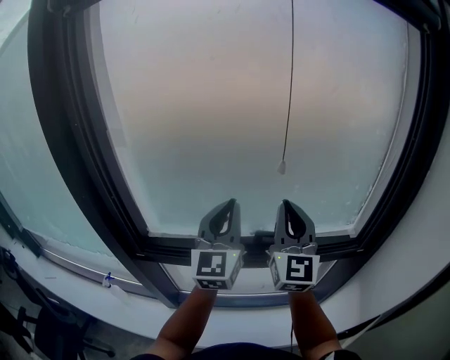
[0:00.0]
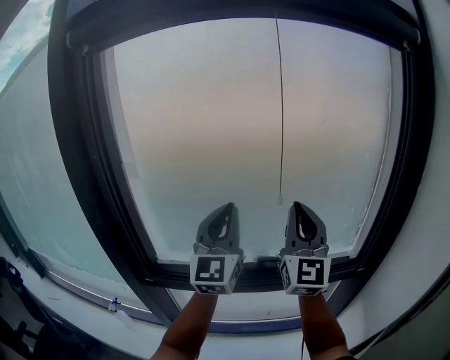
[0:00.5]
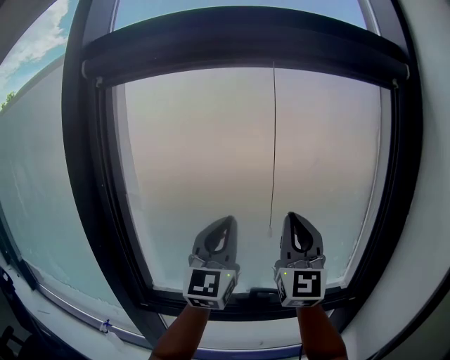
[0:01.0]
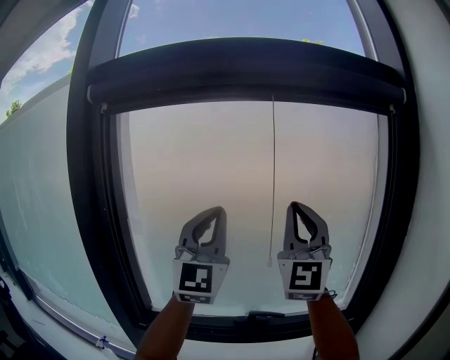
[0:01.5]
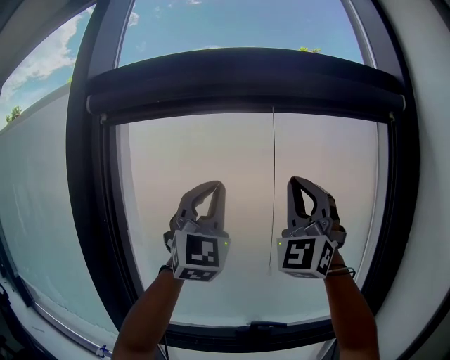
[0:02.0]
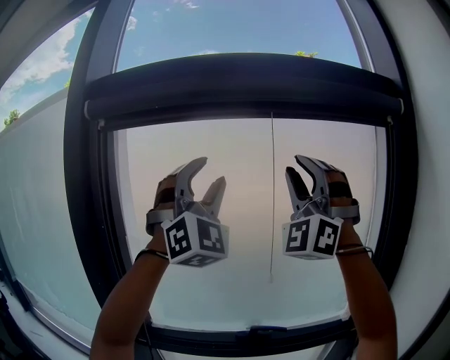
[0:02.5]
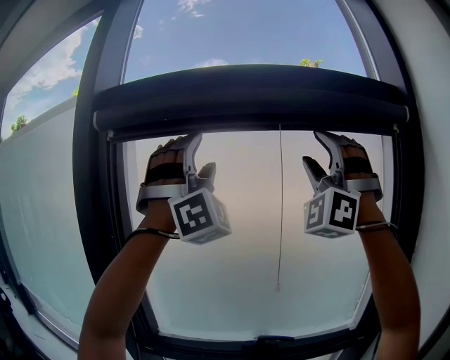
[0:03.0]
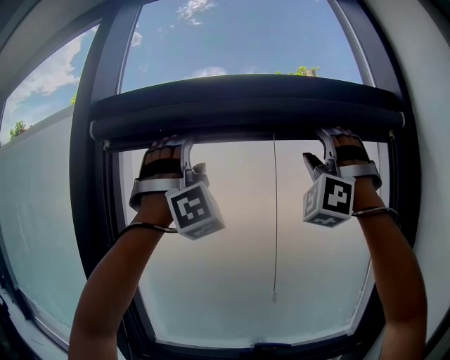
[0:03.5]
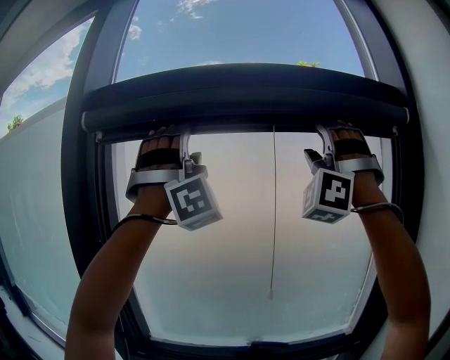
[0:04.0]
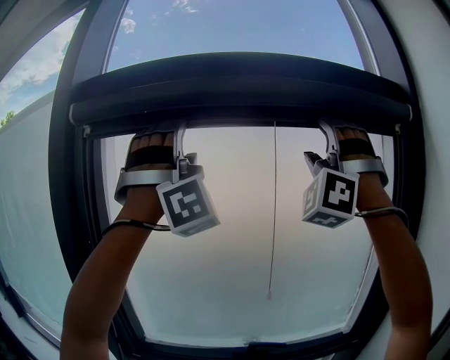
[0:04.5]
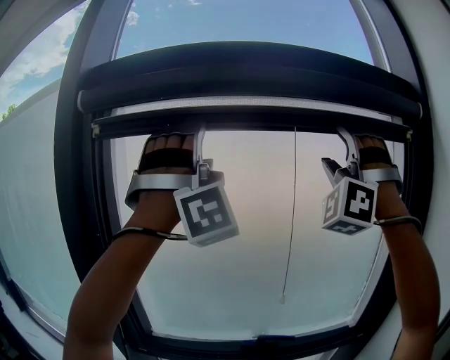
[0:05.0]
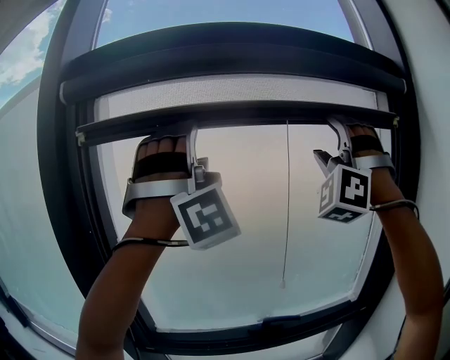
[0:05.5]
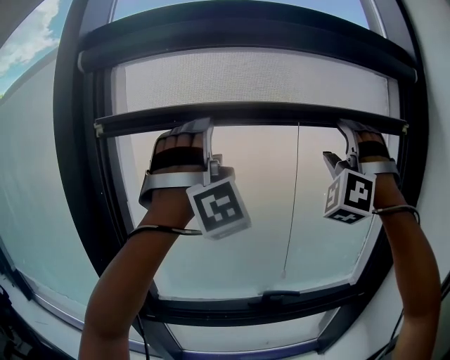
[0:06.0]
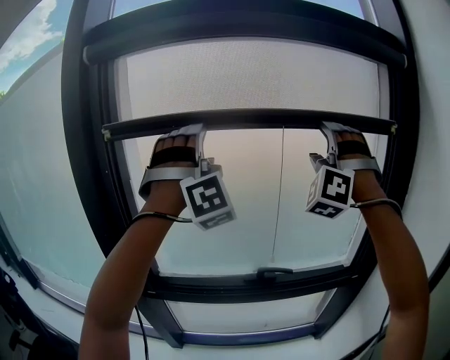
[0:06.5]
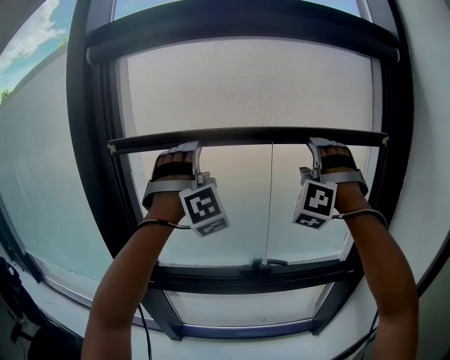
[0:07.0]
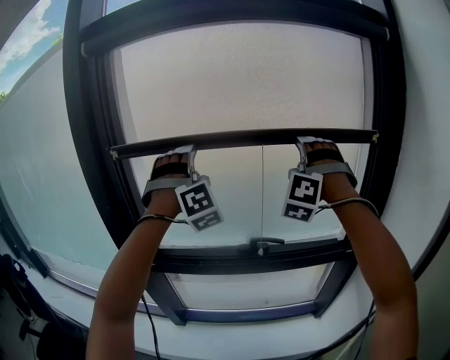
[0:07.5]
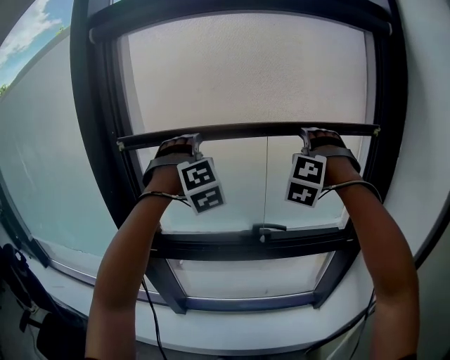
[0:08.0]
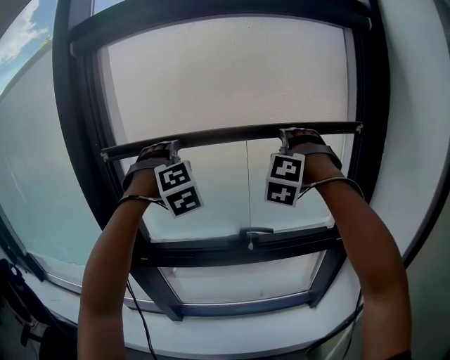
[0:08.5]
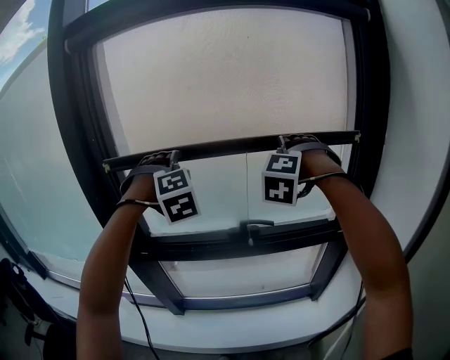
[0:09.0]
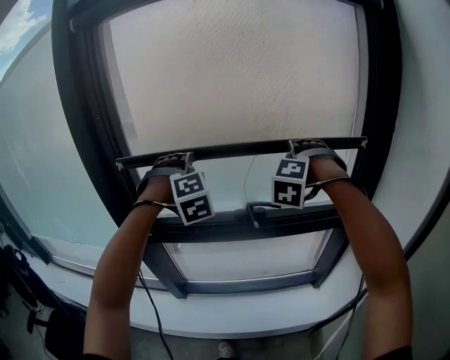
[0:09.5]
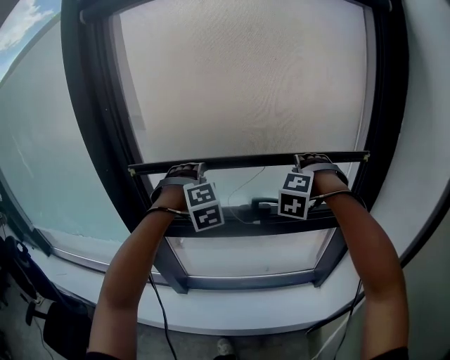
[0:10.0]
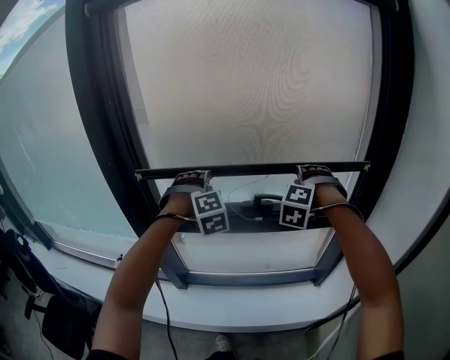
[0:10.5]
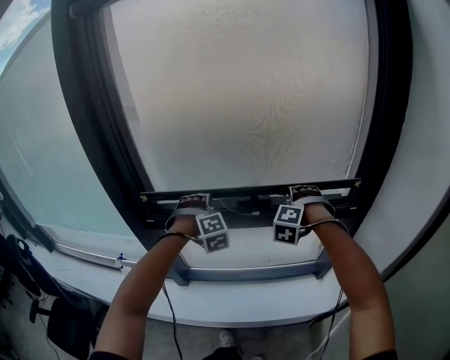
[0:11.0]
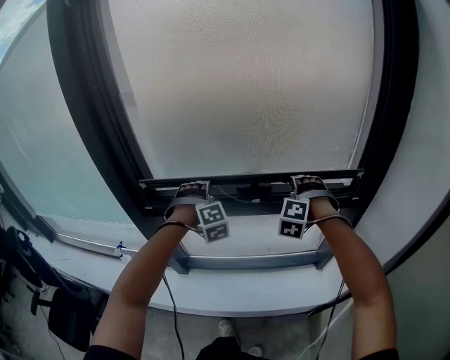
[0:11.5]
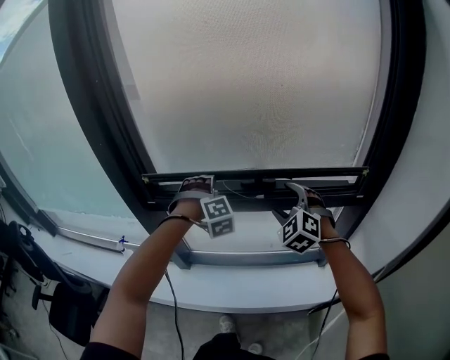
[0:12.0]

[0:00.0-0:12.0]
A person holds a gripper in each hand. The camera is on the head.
0:00.0 to 0:02.0: Both grippers move upward, about 30 cm. The left gripper rotates some 40 degrees. The right gripper twists roughly 50 degrees counterclockwise, seen from behind.
0:02.0 to 0:04.0: The grippers both shift upward by some 15 cm. The left gripper rolls clockwise, seen from behind, by about 60 degrees, and opens up. Meanwhile the right gripper twists some 50 degrees counterclockwise, seen from behind, and opens up.
0:04.0 to 0:06.0: Both grippers travel together downward, approximately 15 cm.
0:06.0 to 0:08.0: The two grippers go approximately 20 cm downward. The left gripper tilts its fingers approximately 30 degrees downward; the right gripper points its fingers approximately 30 degrees further downward.
0:08.0 to 0:10.0: Both grippers travel together downward, roughly 15 cm. The left gripper changes its angle by about 20 degrees. The right gripper swivels approximately 20 degrees.
0:10.0 to 0:12.0: The two grippers go approximately 15 cm downward. The right gripper changes its angle by approximately 40 degrees.

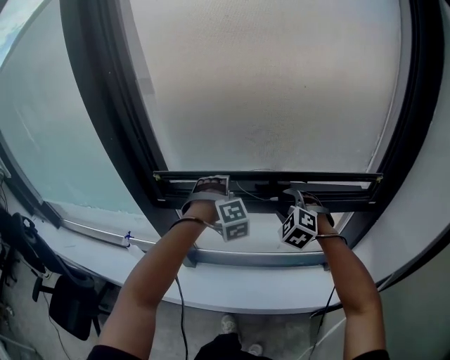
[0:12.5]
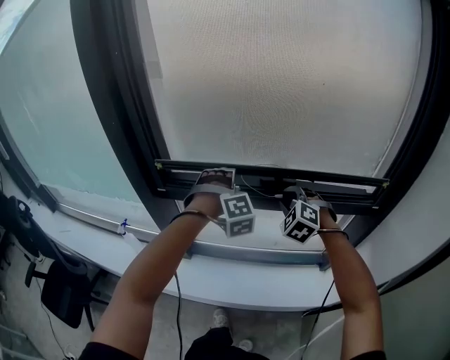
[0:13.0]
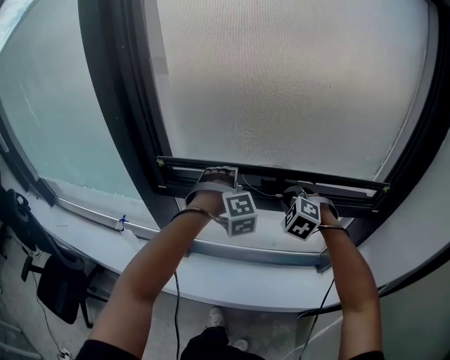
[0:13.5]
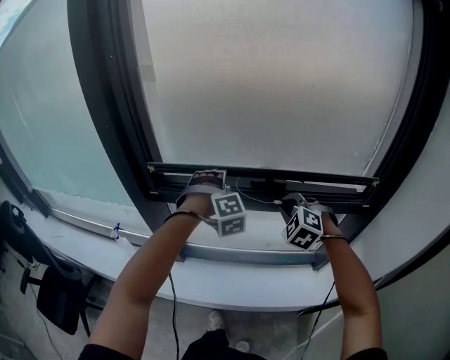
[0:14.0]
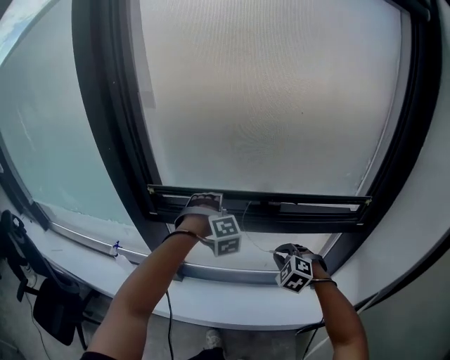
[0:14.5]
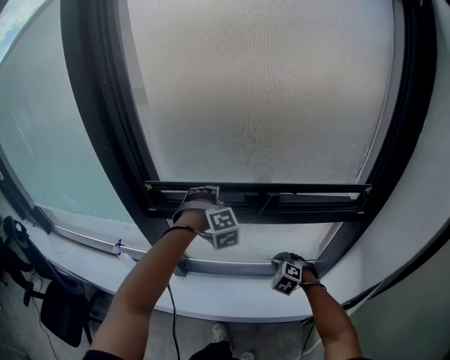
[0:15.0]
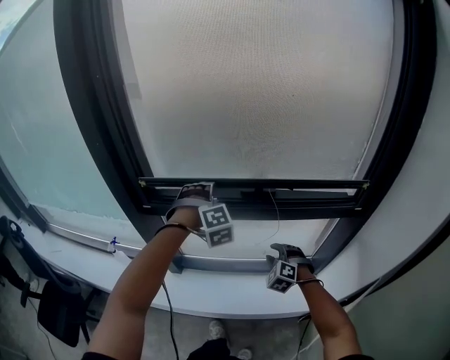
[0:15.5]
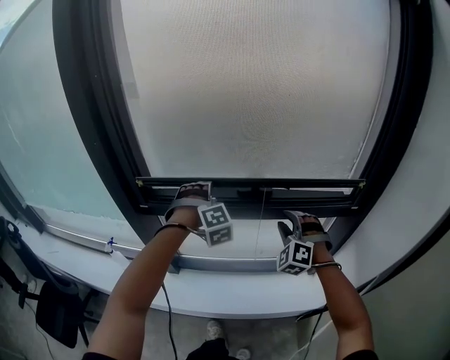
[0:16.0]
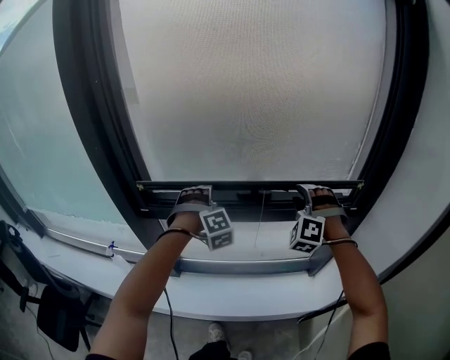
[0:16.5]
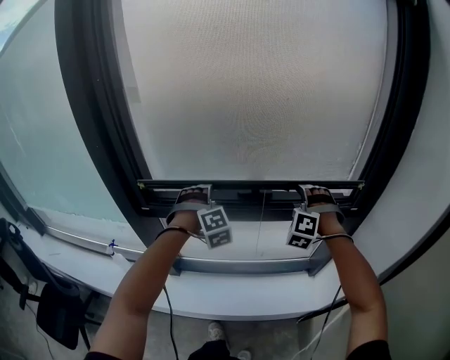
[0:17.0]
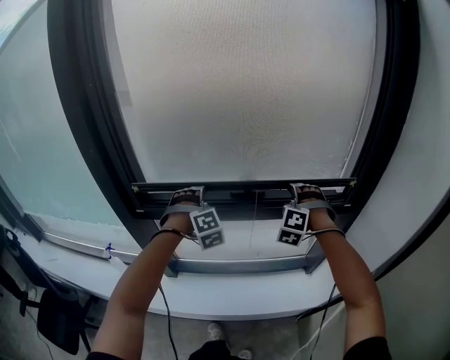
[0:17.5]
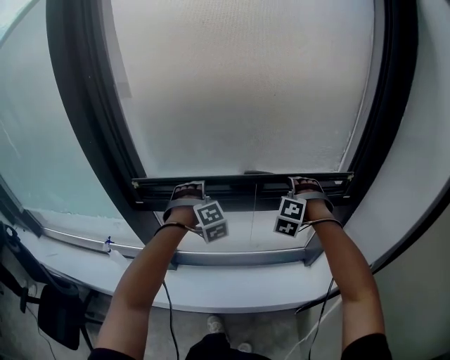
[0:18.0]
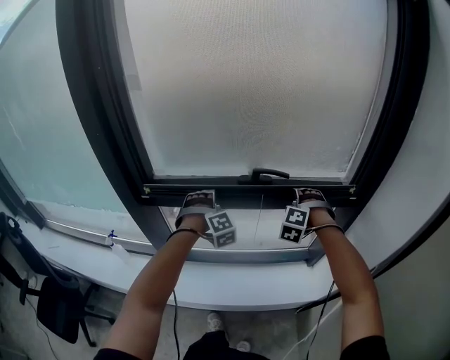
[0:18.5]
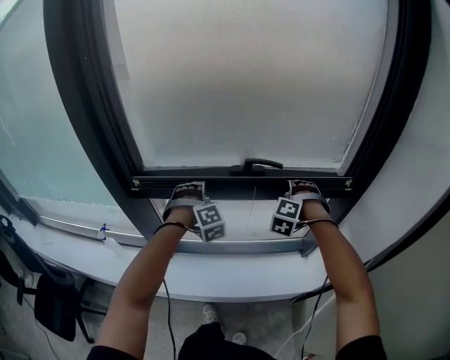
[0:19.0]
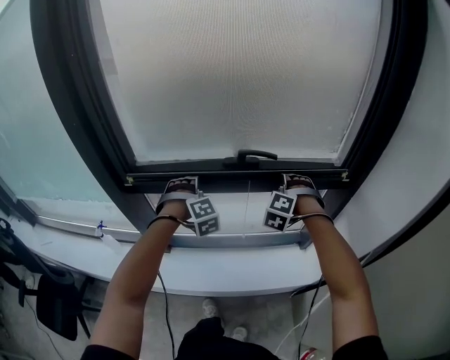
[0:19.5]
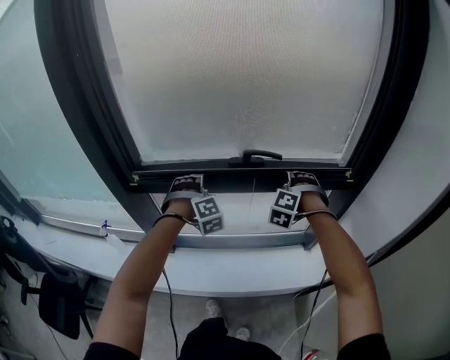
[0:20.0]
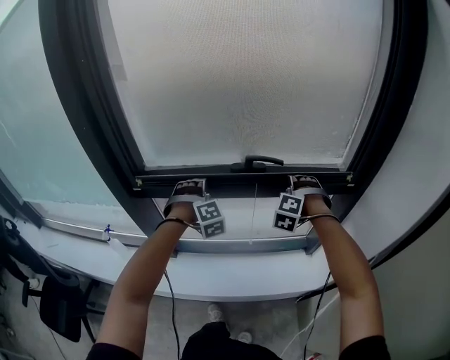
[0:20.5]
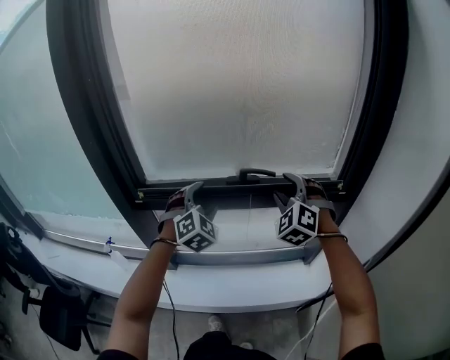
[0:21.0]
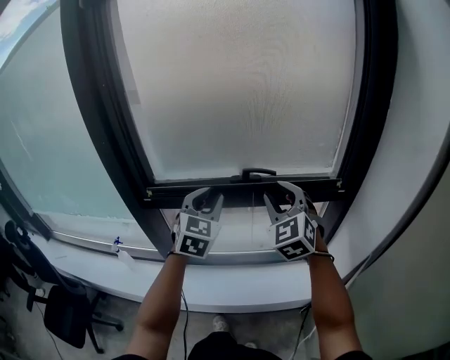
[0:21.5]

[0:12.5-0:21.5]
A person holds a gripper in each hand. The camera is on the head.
0:12.5 to 0:14.5: The right gripper moves downward and backward, approximately 10 cm, and closes.
0:14.5 to 0:17.0: The right gripper travels upward, to the right and forward by some 15 cm, swivels roughly 40 degrees, and opens its fingers.
0:17.0 to 0:19.5: Both grippers travel together downward, roughly 10 cm.
0:19.5 to 0:21.5: The grippers both shift upward and backward by about 20 cm. The left gripper tips its fingers upward by roughly 30 degrees, and closes up. The right gripper tips its fingers upward by about 30 degrees.

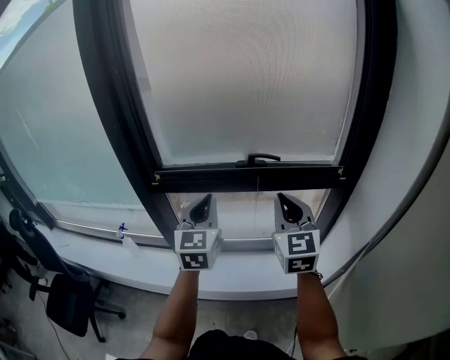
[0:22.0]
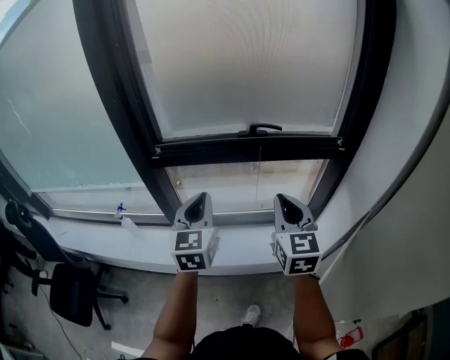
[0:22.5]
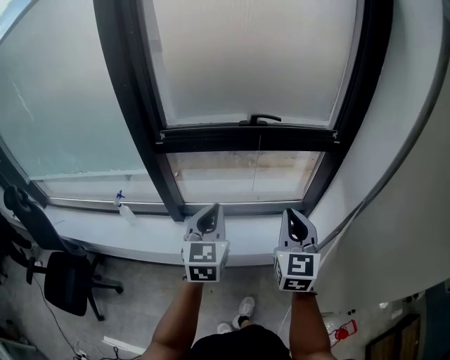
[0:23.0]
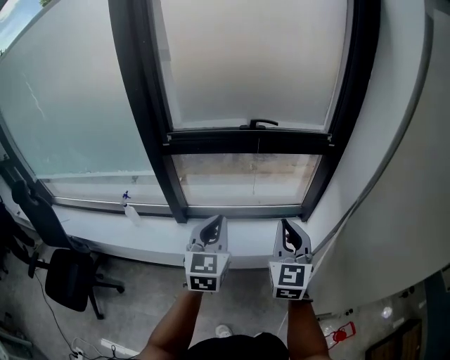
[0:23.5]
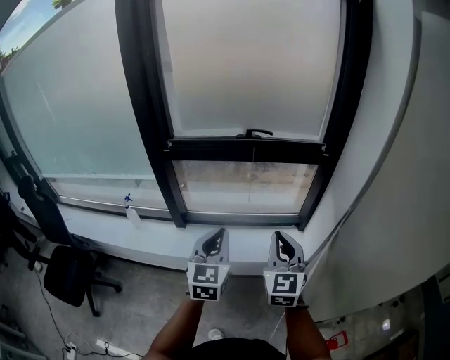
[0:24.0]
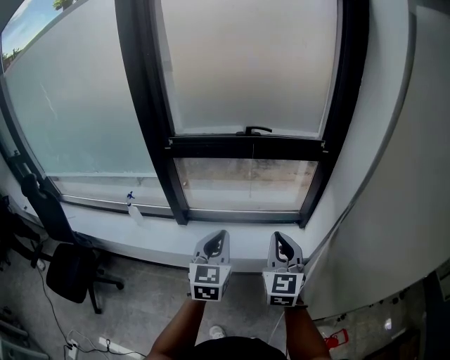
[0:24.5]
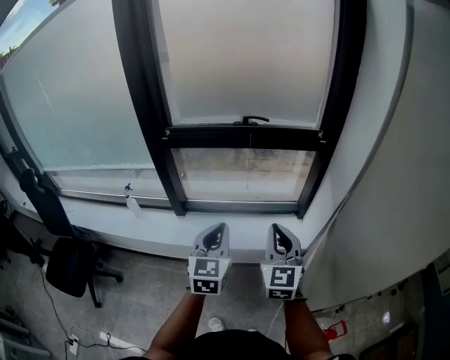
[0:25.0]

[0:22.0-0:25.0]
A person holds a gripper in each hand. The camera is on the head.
0:22.0 to 0:23.5: The two grippers go some 25 cm backward.
0:23.5 to 0:25.0: The left gripper moves to the right and backward, approximately 10 cm; the right gripper moves about 5 cm.

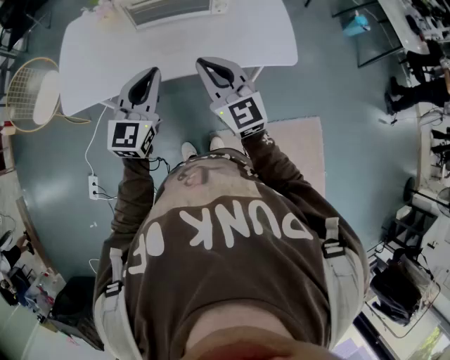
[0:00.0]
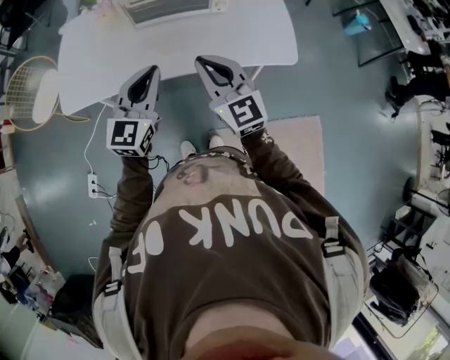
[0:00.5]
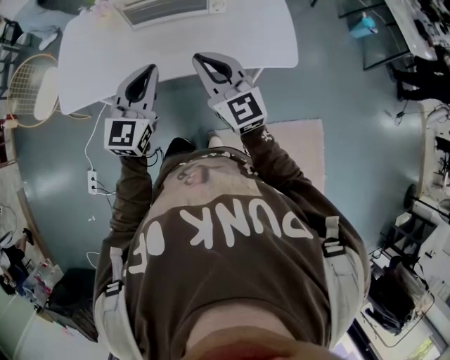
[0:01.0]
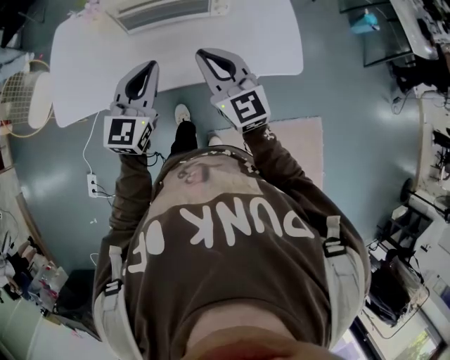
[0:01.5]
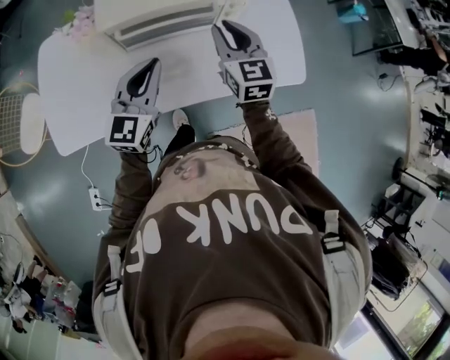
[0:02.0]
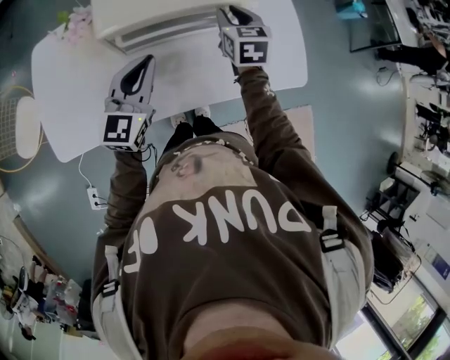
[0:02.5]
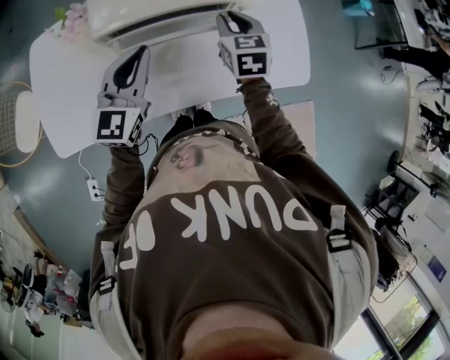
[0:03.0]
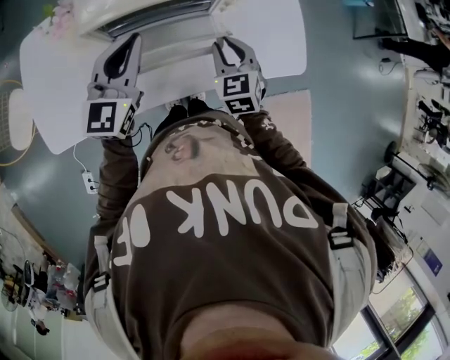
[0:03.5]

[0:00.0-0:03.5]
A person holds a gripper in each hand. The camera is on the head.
0:00.0 to 0:02.0: The grippers both shift forward by some 25 cm. The right gripper changes its angle by some 20 degrees.
0:02.0 to 0:03.5: The right gripper shifts some 10 cm downward, goes forward and returns, approximately 10 cm each way, and rotates some 20 degrees. The left gripper shifts some 5 cm forward.
